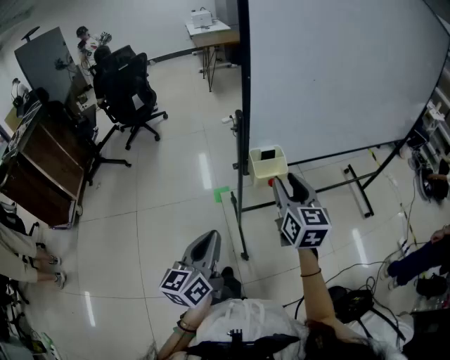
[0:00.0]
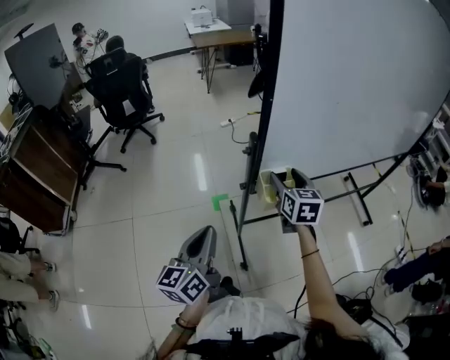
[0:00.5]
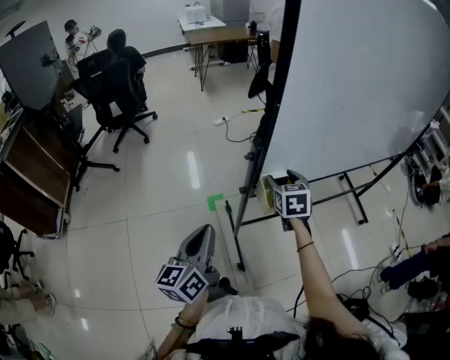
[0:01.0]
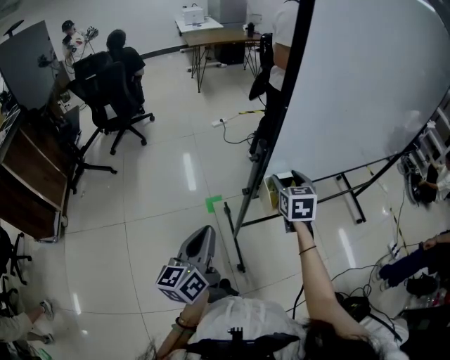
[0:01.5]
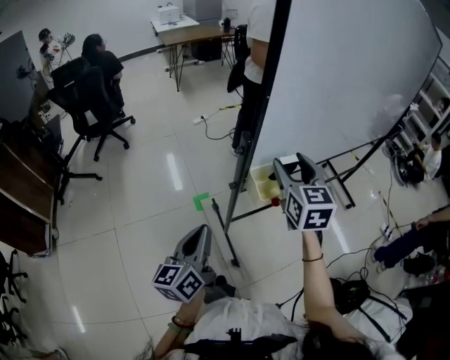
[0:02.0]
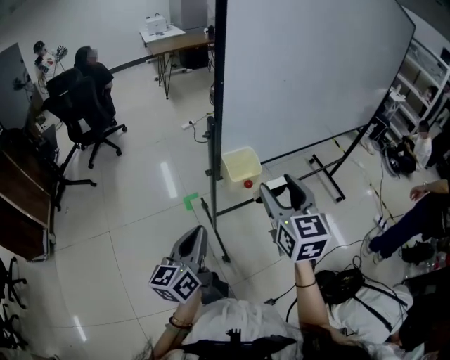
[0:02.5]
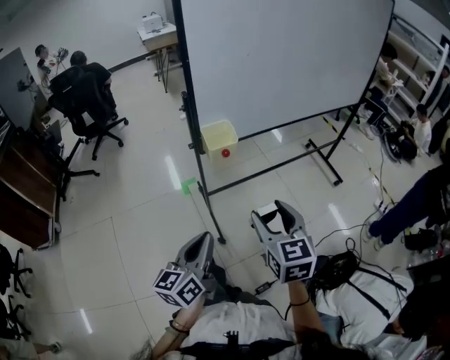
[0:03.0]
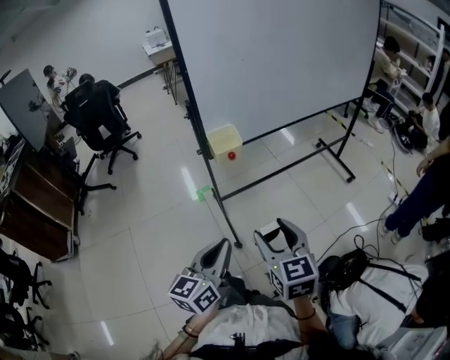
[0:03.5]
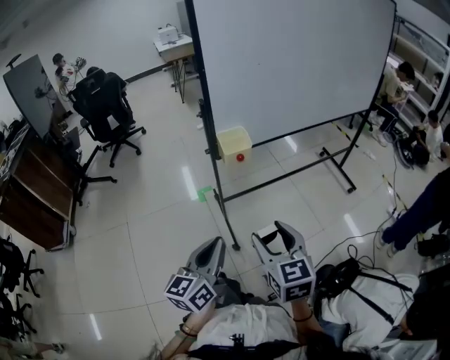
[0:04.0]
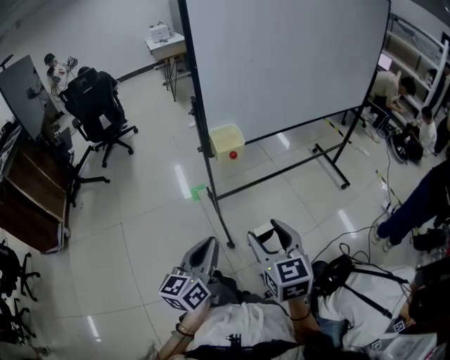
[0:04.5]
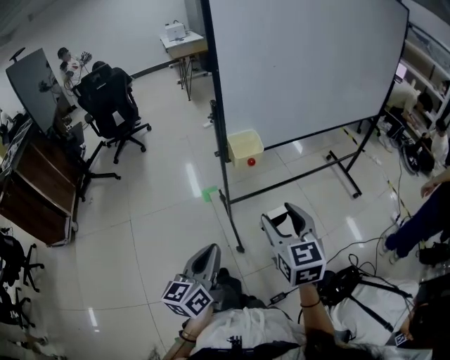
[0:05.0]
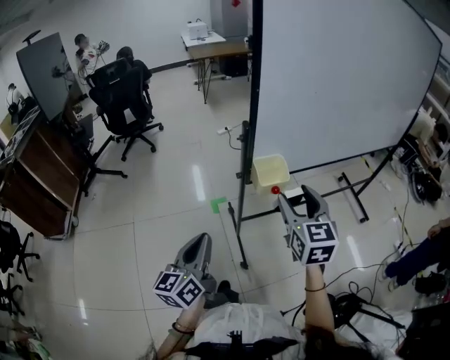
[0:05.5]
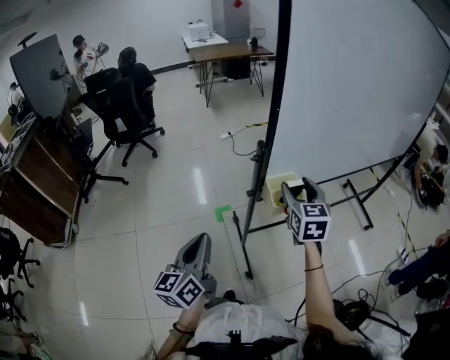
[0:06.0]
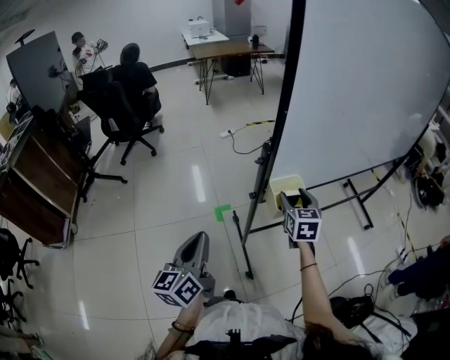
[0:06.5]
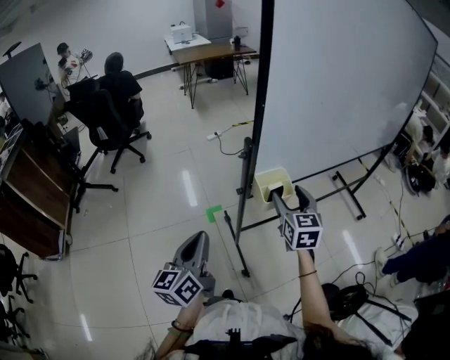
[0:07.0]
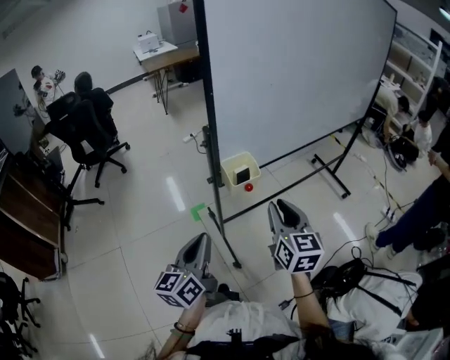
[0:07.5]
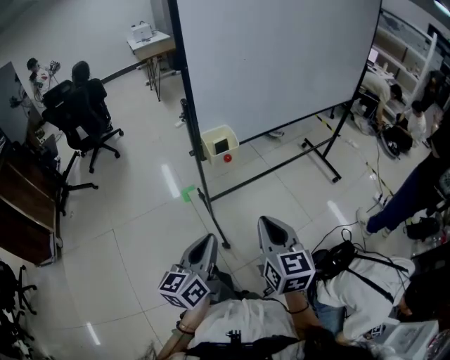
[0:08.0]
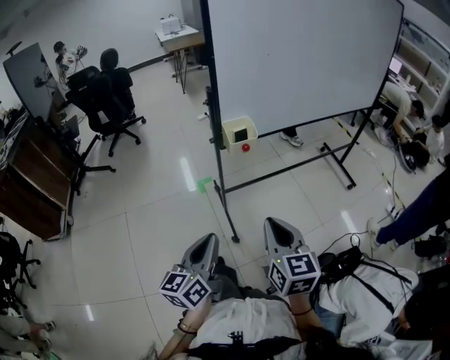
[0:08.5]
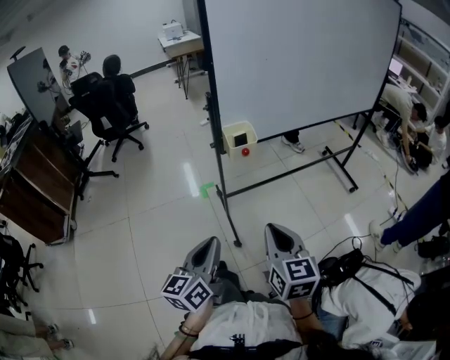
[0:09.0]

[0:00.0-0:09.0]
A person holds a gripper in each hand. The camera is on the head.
0:00.0 to 0:02.0: The right gripper goes some 10 cm forward, while the left gripper travels forward and to the left by about 15 cm.
0:02.0 to 0:04.5: The left gripper shifts some 30 cm backward and to the right; the right gripper goes about 35 cm backward.
0:04.5 to 0:07.0: The right gripper shifts some 35 cm forward, while the left gripper moves forward and to the left, about 25 cm.
0:07.0 to 0:09.0: The left gripper moves backward and to the right, roughly 25 cm. The right gripper heads backward, covering some 35 cm, and closes its fingers.

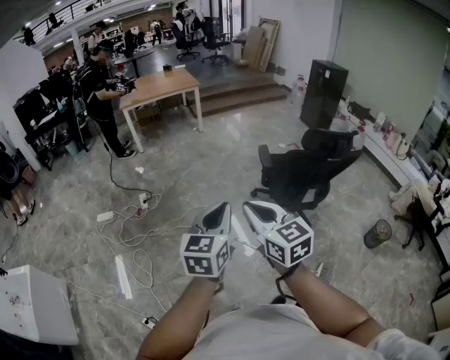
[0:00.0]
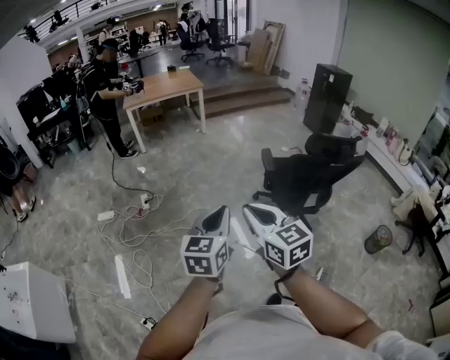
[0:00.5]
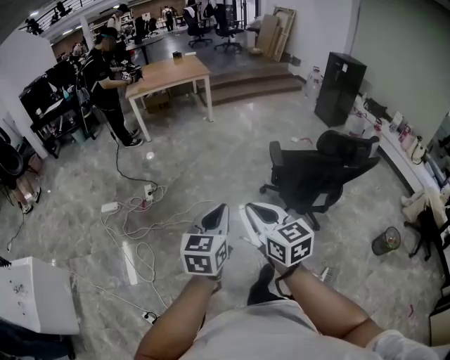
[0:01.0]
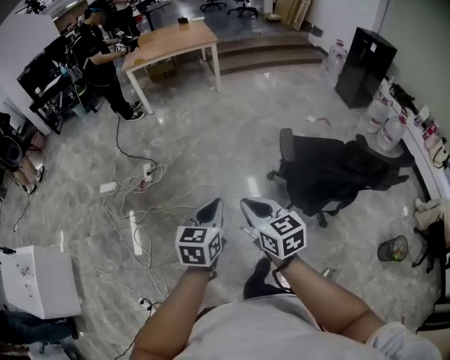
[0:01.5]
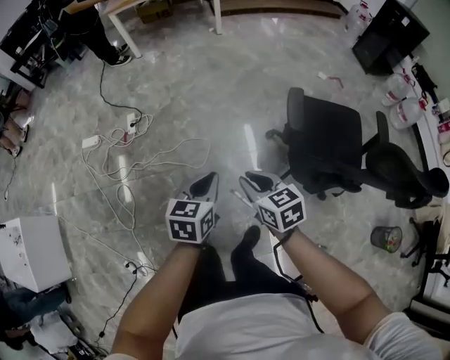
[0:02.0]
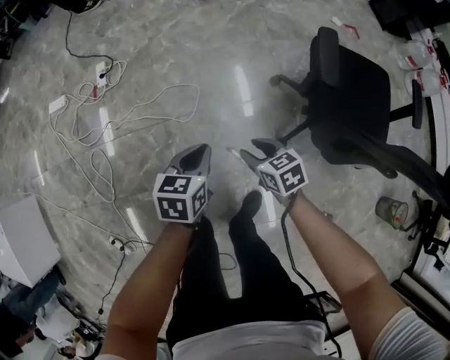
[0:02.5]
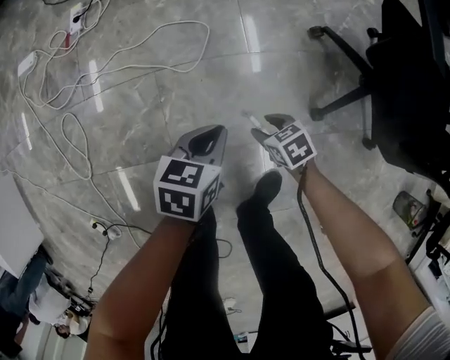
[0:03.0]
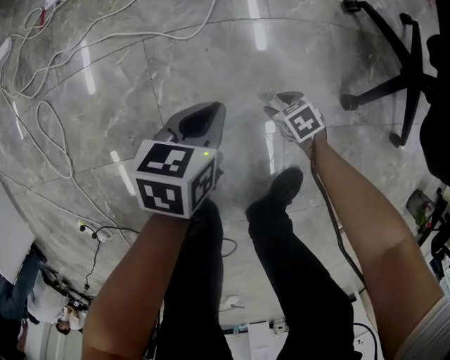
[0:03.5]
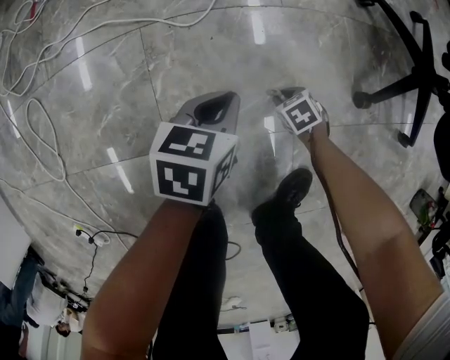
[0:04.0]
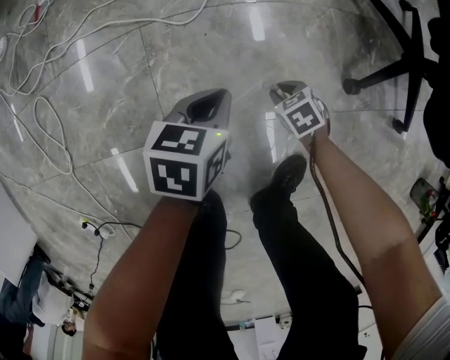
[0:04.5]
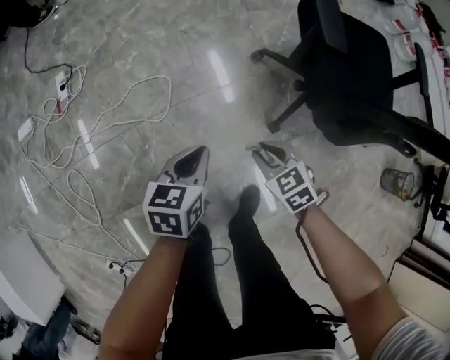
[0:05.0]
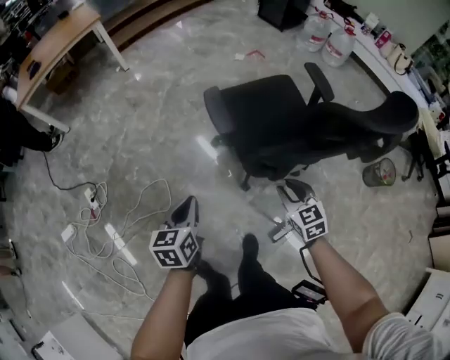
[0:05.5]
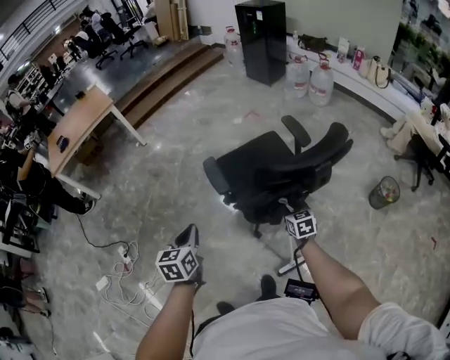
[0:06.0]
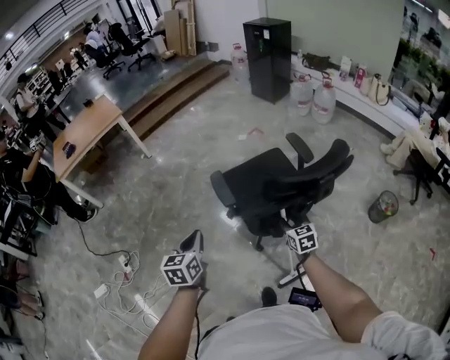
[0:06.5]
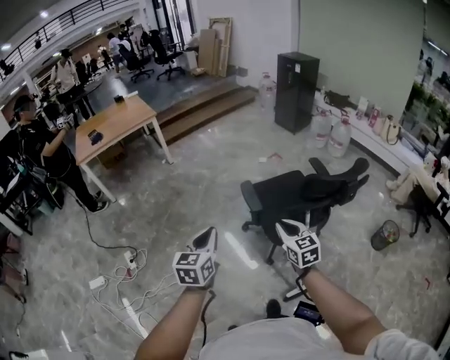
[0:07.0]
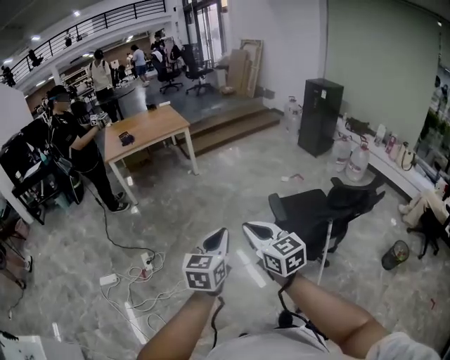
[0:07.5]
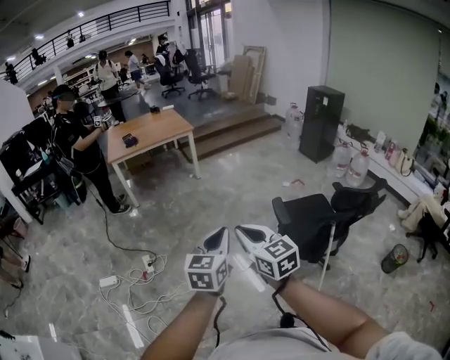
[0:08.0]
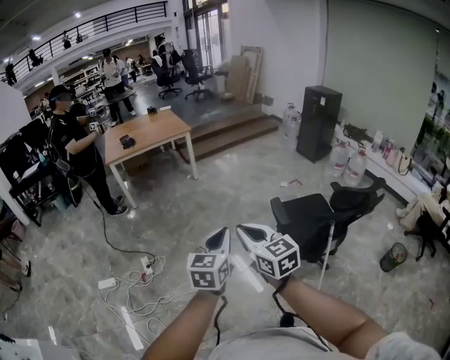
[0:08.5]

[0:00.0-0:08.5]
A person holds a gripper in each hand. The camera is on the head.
0:00.0 to 0:02.0: The two grippers go some 50 cm forward and downward. The right gripper turns by approximately 30 degrees, while the left gripper swivels some 30 degrees.
0:02.0 to 0:04.0: Both grippers travel together downward, approximately 90 cm. The right gripper tips its fingers downward by about 50 degrees, and opens and closes again. The left gripper turns by some 20 degrees.
0:04.0 to 0:06.5: Both grippers move upward, about 90 cm. The right gripper tilts its fingers some 50 degrees upward; the left gripper rotates about 30 degrees.
0:06.5 to 0:08.5: The right gripper travels to the left and upward by about 70 cm, changes its angle by roughly 40 degrees, and closes its fingers. Meanwhile the left gripper goes roughly 40 cm to the left, upward and backward.

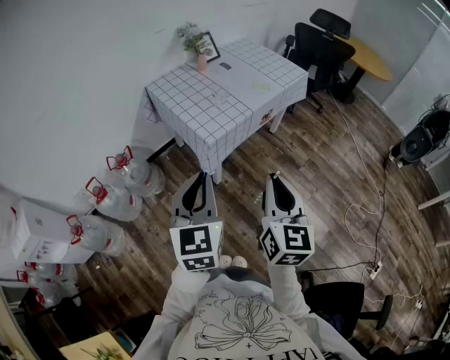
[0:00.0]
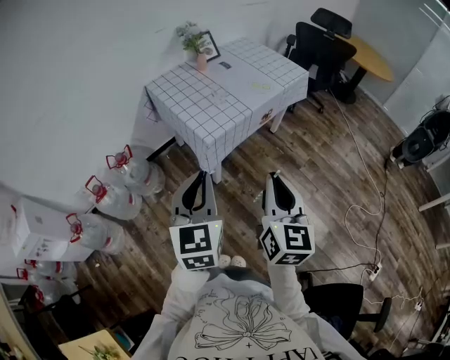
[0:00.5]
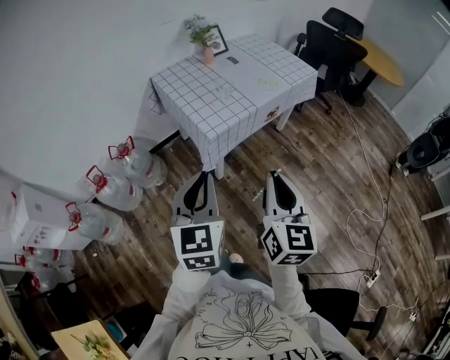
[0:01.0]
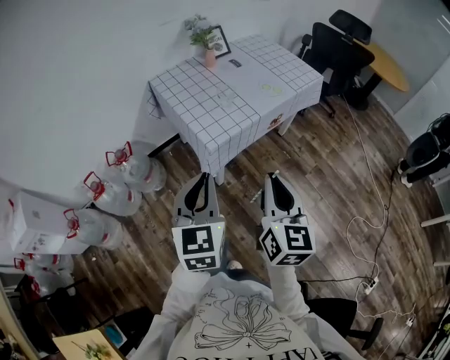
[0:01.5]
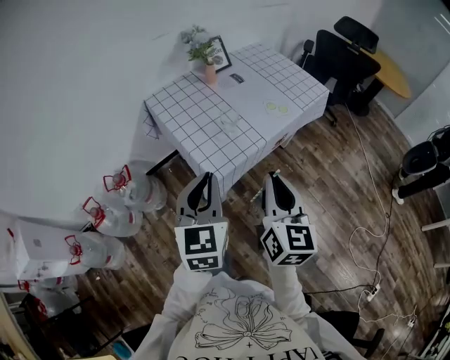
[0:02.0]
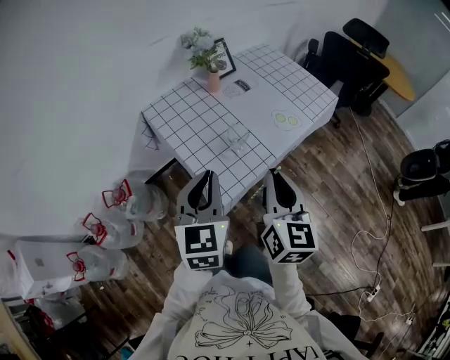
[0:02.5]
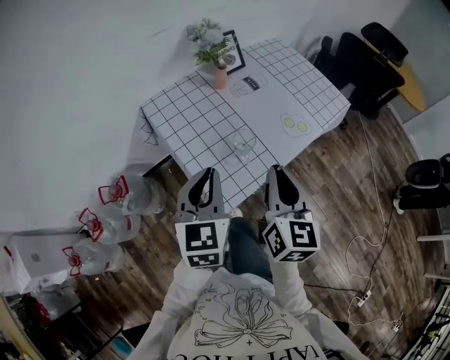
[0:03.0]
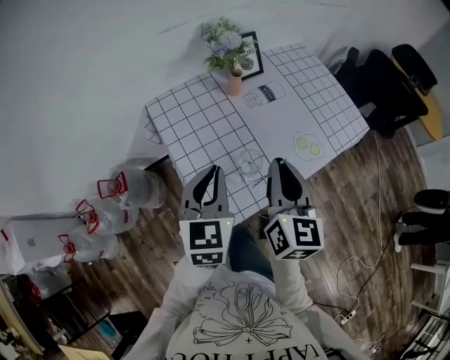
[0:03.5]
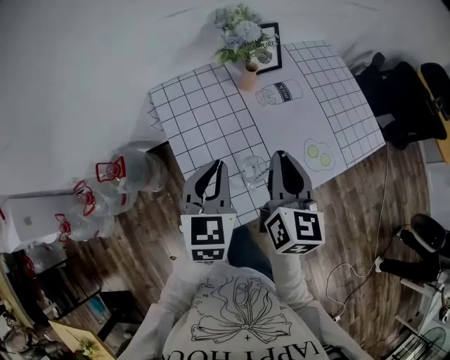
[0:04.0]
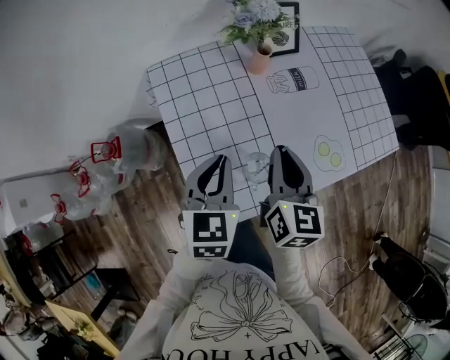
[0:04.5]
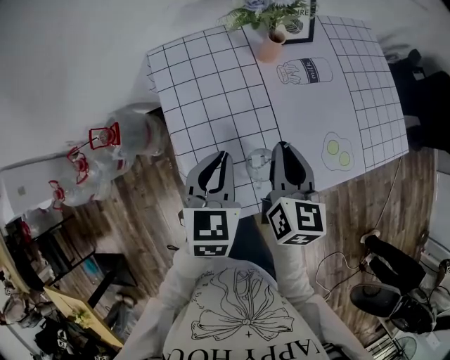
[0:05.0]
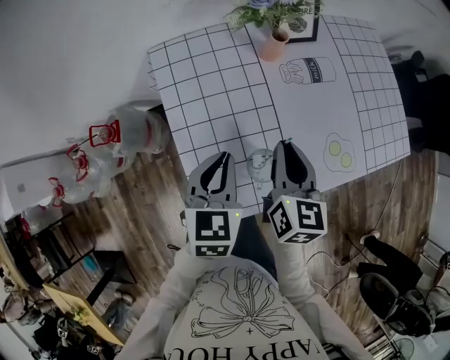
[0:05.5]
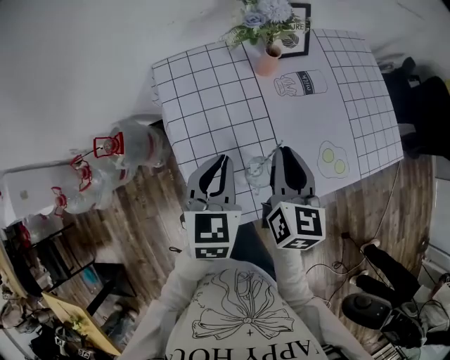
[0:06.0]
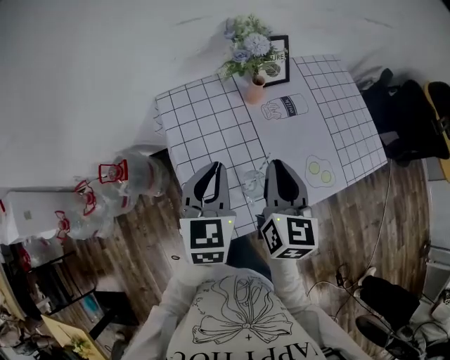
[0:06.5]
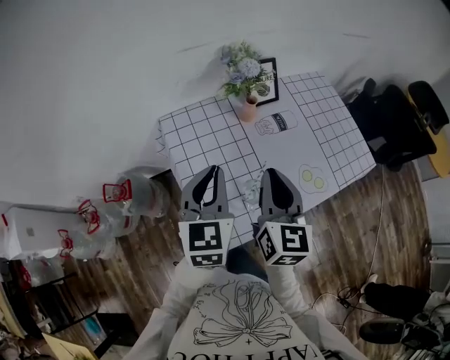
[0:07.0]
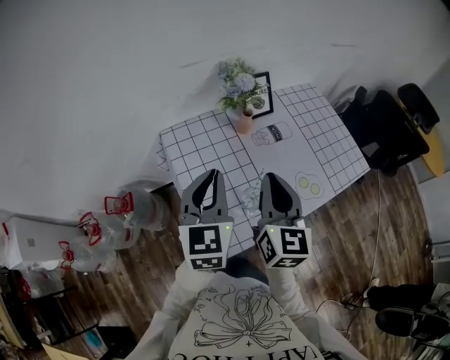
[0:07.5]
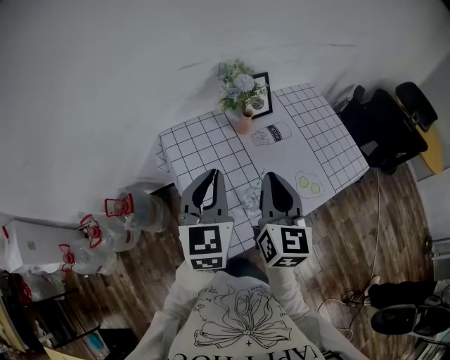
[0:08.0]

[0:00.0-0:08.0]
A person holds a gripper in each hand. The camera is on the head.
0:00.0 to 0:02.0: Both grippers travel together forward, some 20 cm.
0:02.0 to 0:04.0: The two grippers go some 35 cm forward.
0:04.0 to 0:06.0: The grippers both shift downward by about 10 cm.
0:06.0 to 0:08.0: The two grippers go approximately 15 cm upward. The left gripper swivels about 20 degrees.

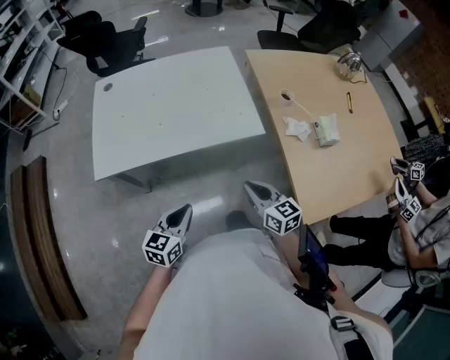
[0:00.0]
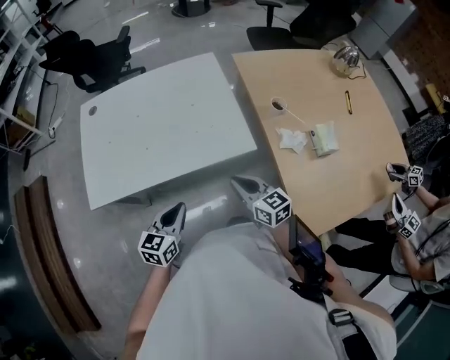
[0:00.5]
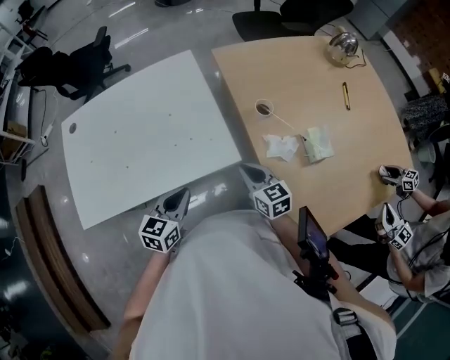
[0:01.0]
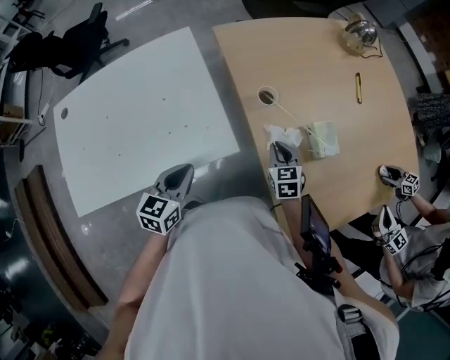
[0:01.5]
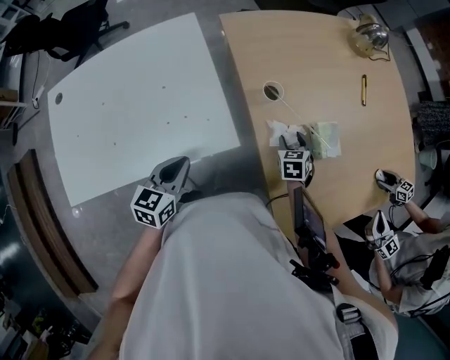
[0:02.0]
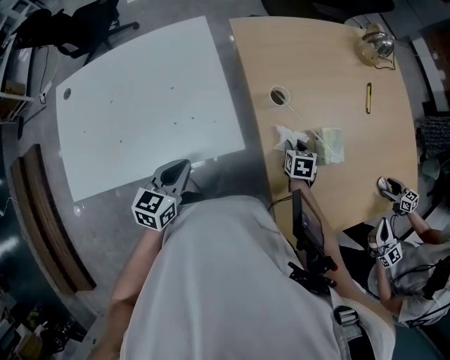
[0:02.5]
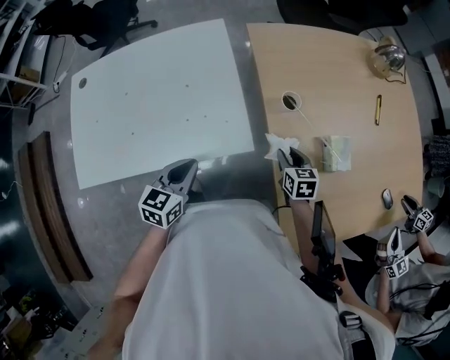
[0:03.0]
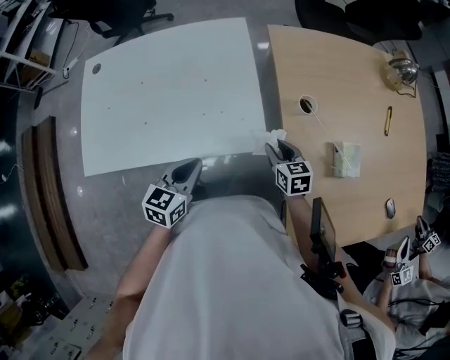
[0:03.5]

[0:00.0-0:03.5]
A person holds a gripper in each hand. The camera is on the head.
0:00.0 to 0:02.0: The left gripper changes place by some 30 cm, while the right gripper moves some 40 cm, angles its fingers downward, by about 30 degrees, and opens its fingers.
0:02.0 to 0:03.5: The right gripper shifts by about 20 cm, and turns by approximately 30 degrees, while the left gripper shifts by some 5 cm.
